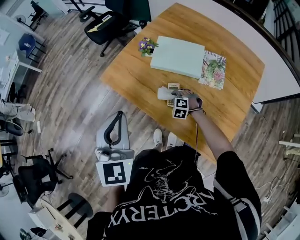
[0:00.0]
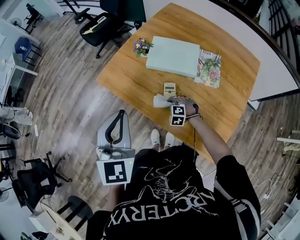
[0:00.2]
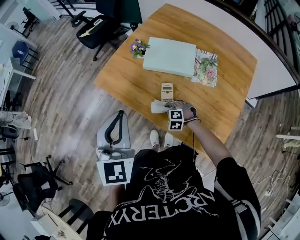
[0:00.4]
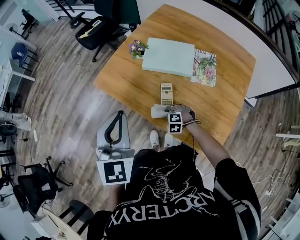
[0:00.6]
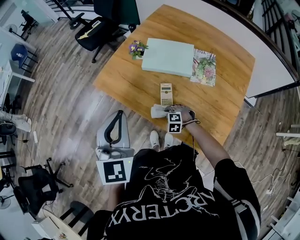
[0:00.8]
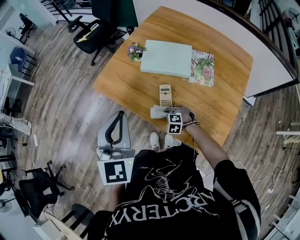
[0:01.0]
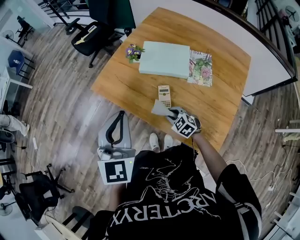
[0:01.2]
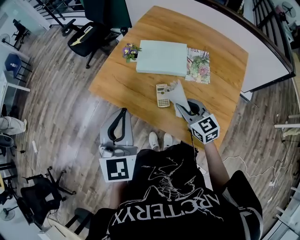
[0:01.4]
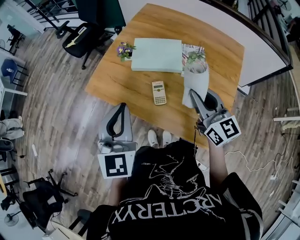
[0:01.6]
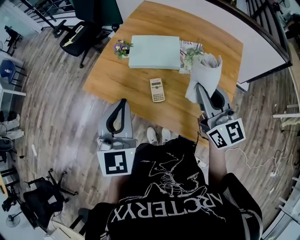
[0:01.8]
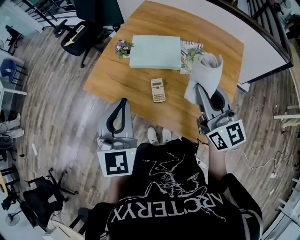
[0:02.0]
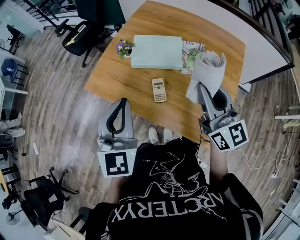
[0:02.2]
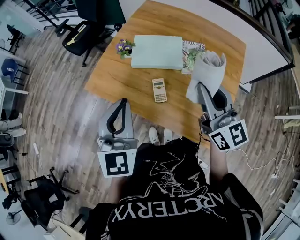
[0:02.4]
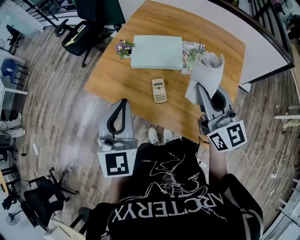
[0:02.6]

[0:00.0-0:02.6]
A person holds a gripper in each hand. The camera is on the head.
0:00.0 to 0:01.2: The right gripper is displaced backward and upward by roughly 10 cm, and rotates about 40 degrees.
0:01.2 to 0:02.6: The right gripper shifts roughly 35 cm upward, and tilts its fingers about 50 degrees upward.

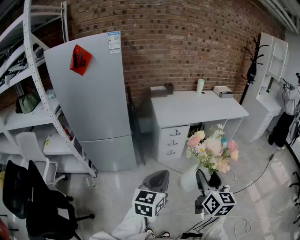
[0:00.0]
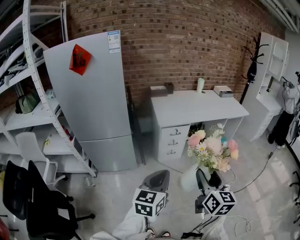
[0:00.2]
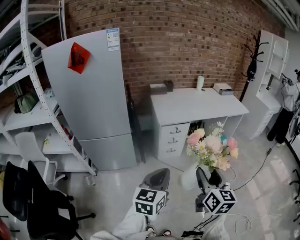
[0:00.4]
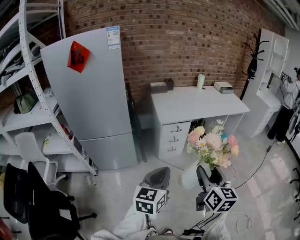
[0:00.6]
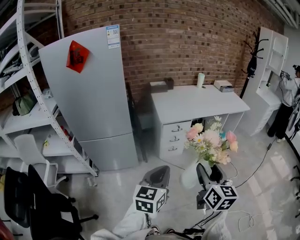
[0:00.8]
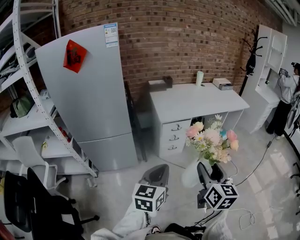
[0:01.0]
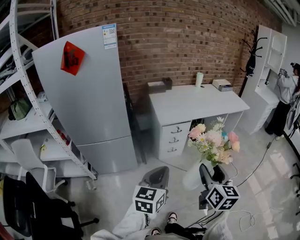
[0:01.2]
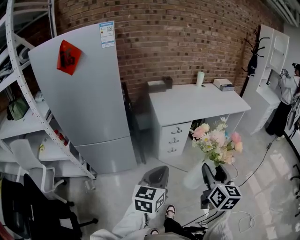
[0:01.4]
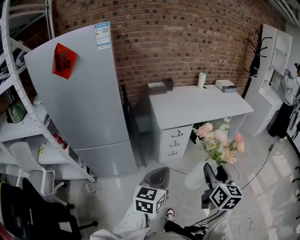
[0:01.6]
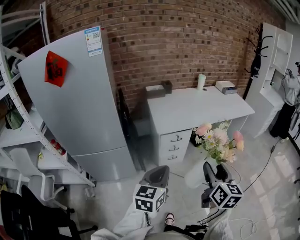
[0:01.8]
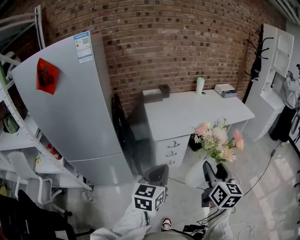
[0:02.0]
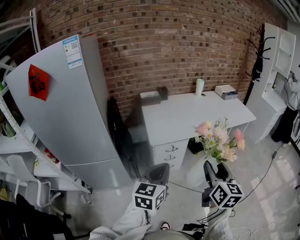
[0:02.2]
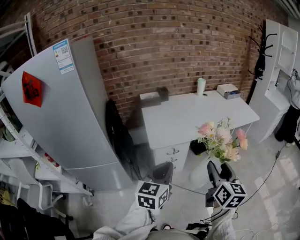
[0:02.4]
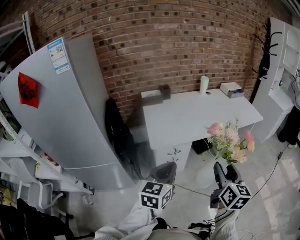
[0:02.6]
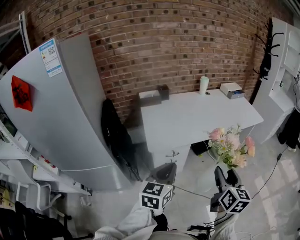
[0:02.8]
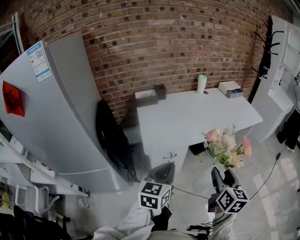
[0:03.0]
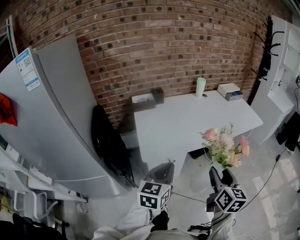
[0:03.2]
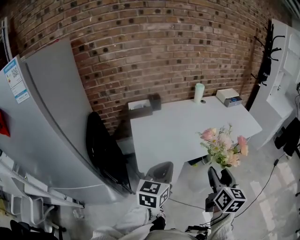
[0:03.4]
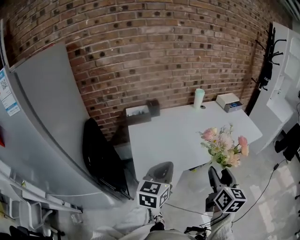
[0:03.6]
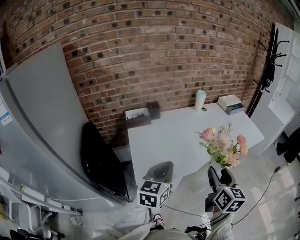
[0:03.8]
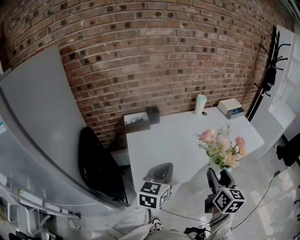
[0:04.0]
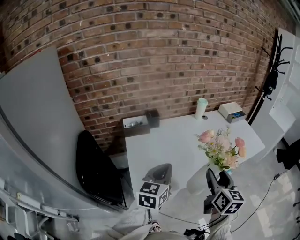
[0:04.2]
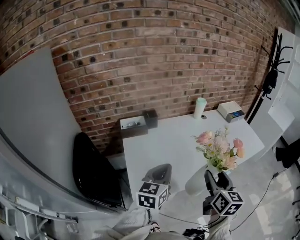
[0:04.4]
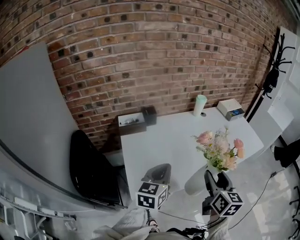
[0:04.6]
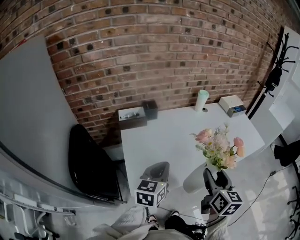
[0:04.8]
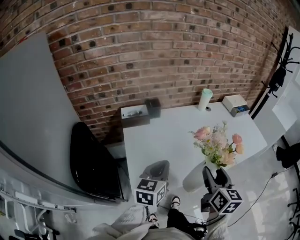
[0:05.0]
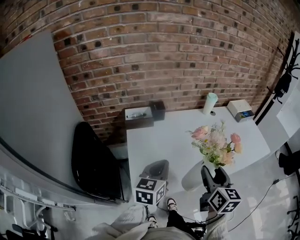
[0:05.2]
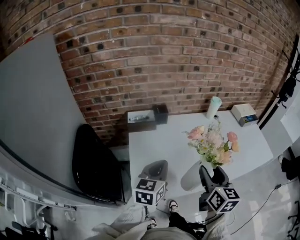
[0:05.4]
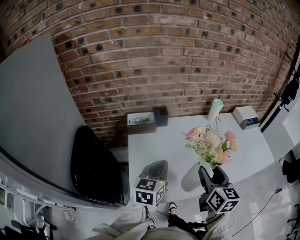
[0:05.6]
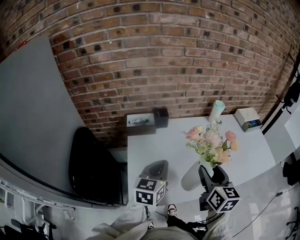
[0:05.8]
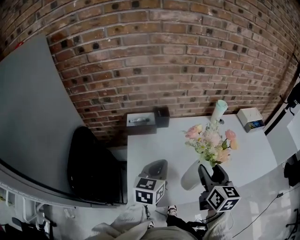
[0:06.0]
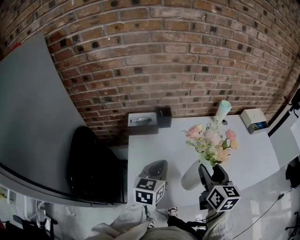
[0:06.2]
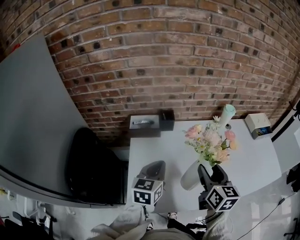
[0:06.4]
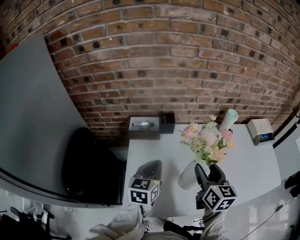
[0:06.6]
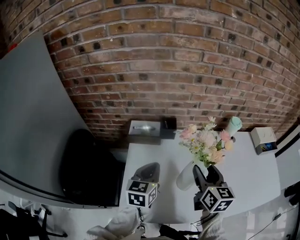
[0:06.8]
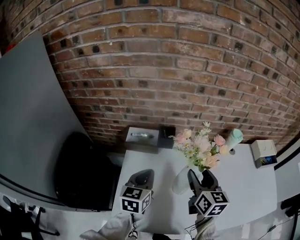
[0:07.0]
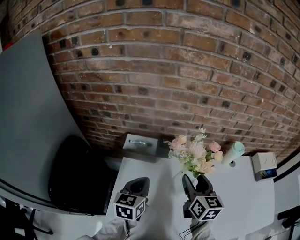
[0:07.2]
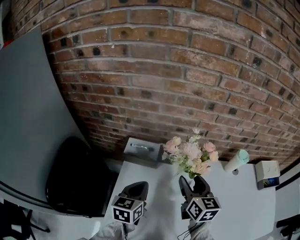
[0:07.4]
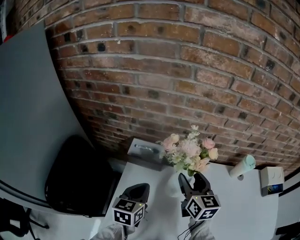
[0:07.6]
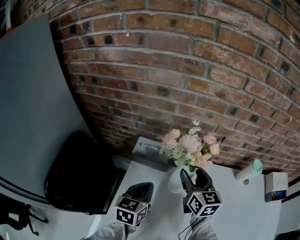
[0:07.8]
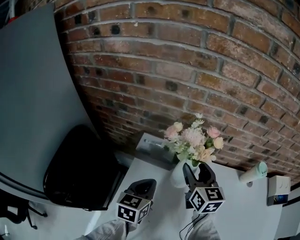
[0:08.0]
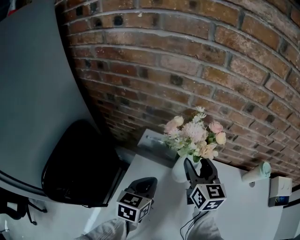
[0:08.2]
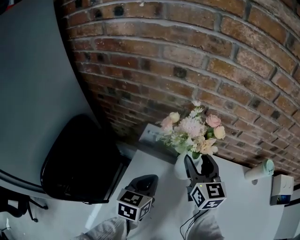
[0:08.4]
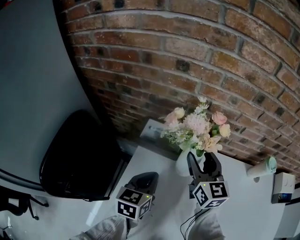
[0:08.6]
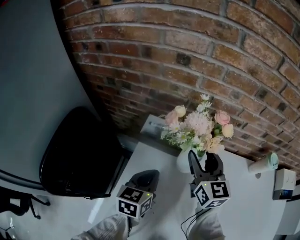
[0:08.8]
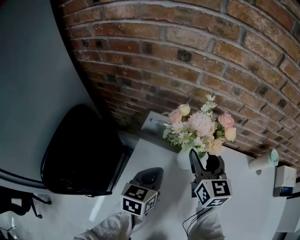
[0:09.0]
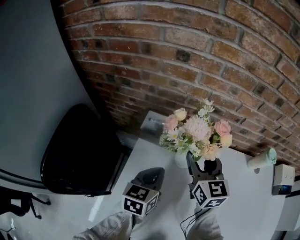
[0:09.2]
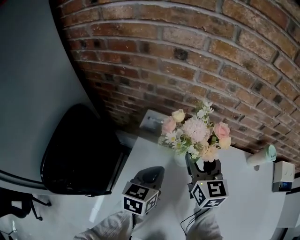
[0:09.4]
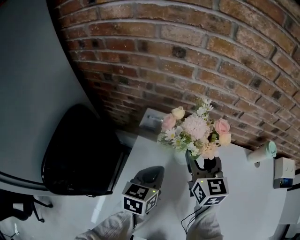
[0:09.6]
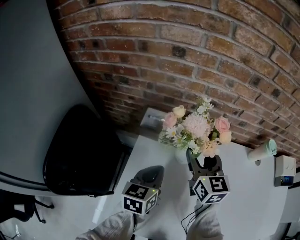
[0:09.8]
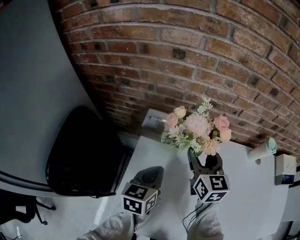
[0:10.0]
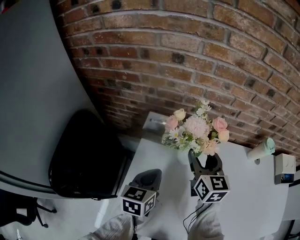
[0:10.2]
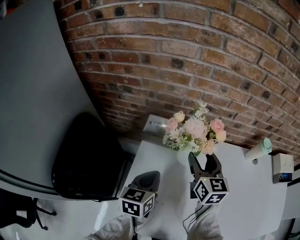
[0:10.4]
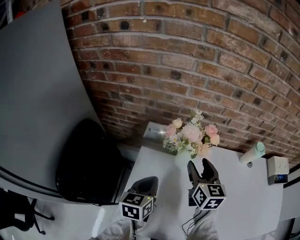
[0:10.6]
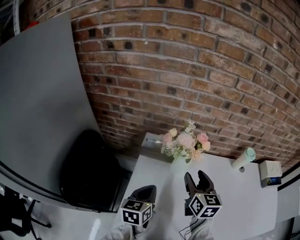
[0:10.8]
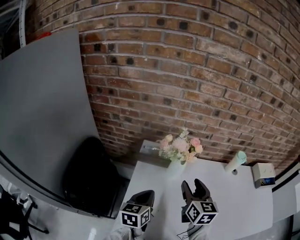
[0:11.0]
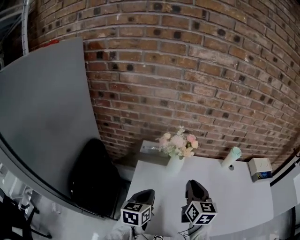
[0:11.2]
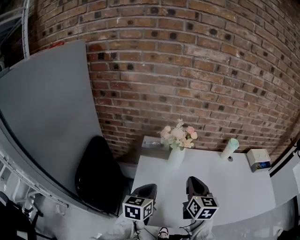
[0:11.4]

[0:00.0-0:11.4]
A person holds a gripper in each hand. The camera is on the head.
0:00.0 to 0:01.4: Both grippers travel together forward, roughly 5 cm.
0:01.4 to 0:02.8: Both grippers travel together forward, about 30 cm.
0:02.8 to 0:04.2: Both grippers travel together forward, approximately 30 cm.
0:04.2 to 0:05.6: The left gripper shifts about 10 cm forward. Meanwhile the right gripper travels forward and to the left by approximately 15 cm.
0:05.6 to 0:07.2: The right gripper heads forward, covering some 25 cm; the left gripper is displaced forward by roughly 15 cm, and changes its angle by about 20 degrees.
0:07.2 to 0:08.6: The right gripper shifts some 15 cm forward and to the left, and rotates about 20 degrees, while the left gripper goes some 10 cm downward.
0:08.6 to 0:10.0: The grippers stay close to where they were, moving slightly.
0:10.0 to 0:11.4: The two grippers go some 20 cm backward and upward. The right gripper closes up.

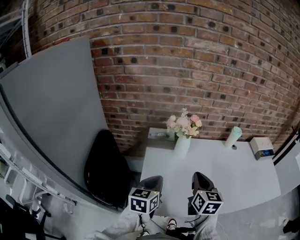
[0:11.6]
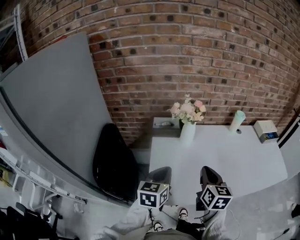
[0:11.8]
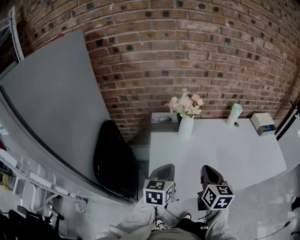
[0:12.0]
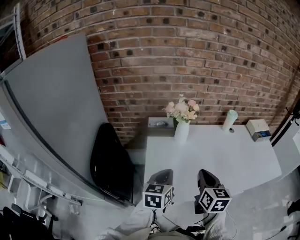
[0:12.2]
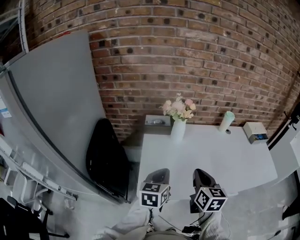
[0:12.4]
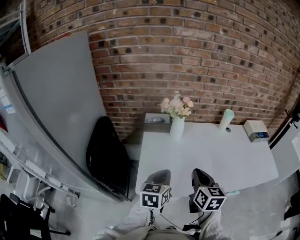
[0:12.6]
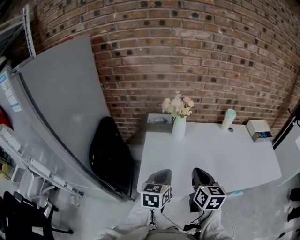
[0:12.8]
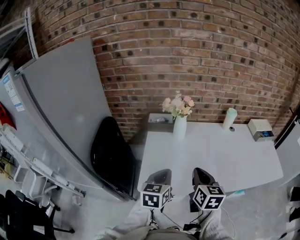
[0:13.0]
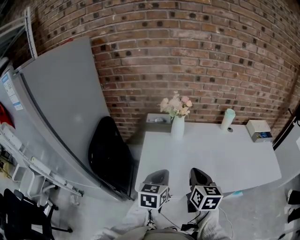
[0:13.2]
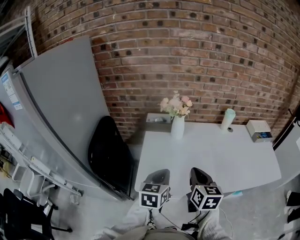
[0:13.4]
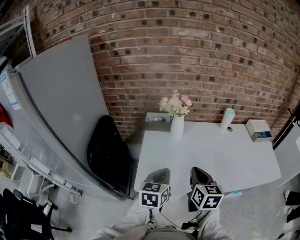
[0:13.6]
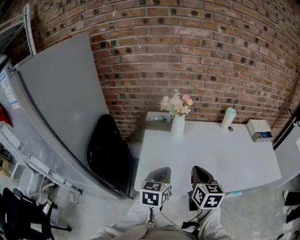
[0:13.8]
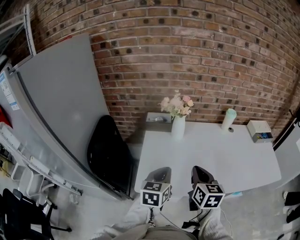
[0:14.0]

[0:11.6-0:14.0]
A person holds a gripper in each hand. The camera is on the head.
0:11.6 to 0:12.8: The right gripper moves backward, approximately 10 cm; the left gripper goes about 10 cm backward and to the right.
0:12.8 to 0:14.0: Both grippers stay put.

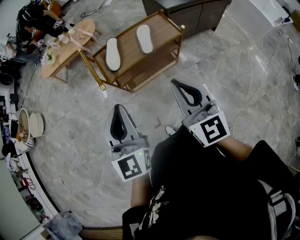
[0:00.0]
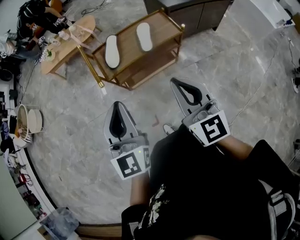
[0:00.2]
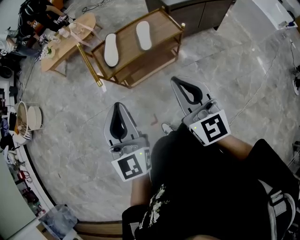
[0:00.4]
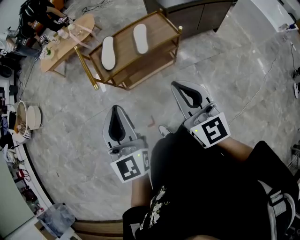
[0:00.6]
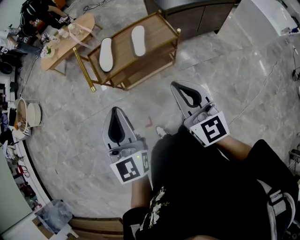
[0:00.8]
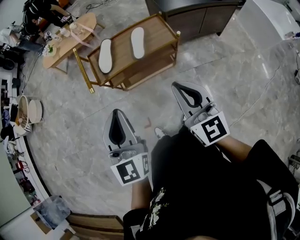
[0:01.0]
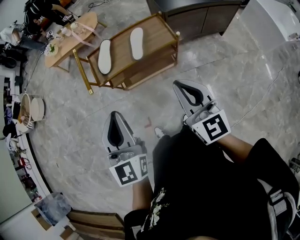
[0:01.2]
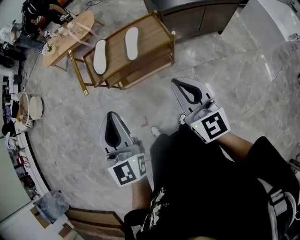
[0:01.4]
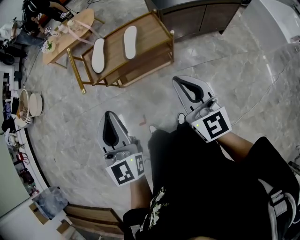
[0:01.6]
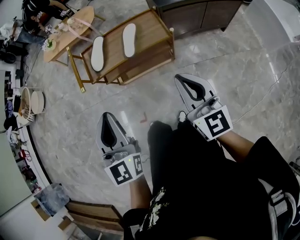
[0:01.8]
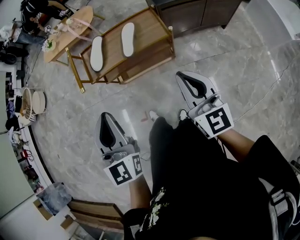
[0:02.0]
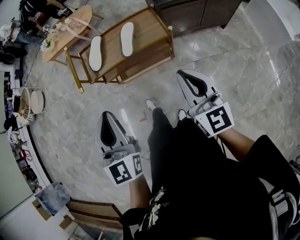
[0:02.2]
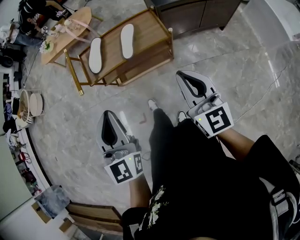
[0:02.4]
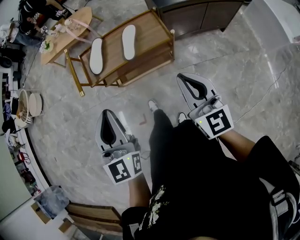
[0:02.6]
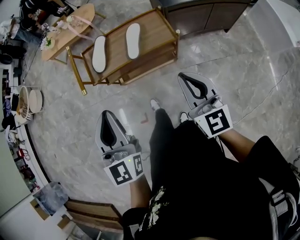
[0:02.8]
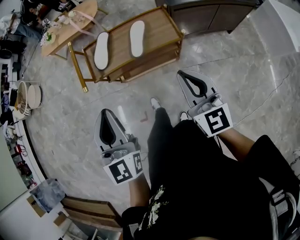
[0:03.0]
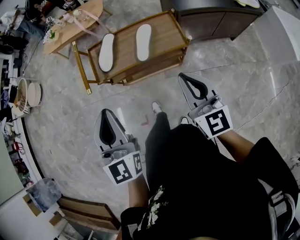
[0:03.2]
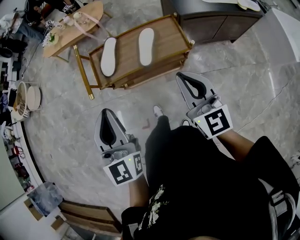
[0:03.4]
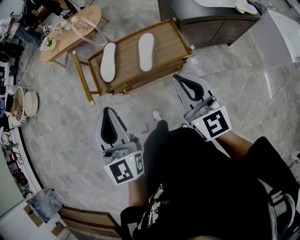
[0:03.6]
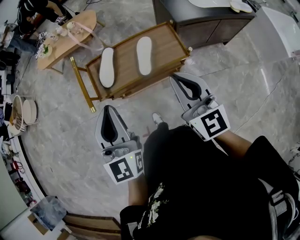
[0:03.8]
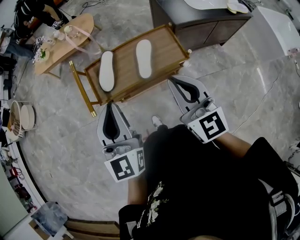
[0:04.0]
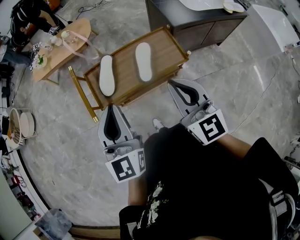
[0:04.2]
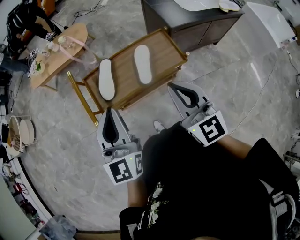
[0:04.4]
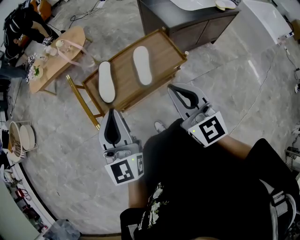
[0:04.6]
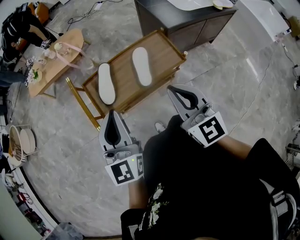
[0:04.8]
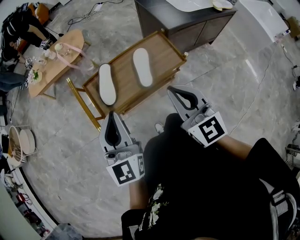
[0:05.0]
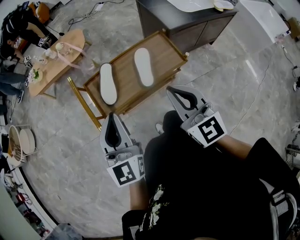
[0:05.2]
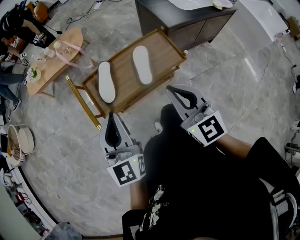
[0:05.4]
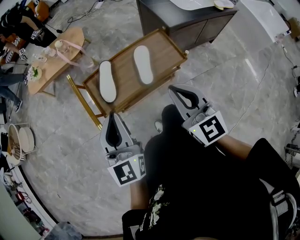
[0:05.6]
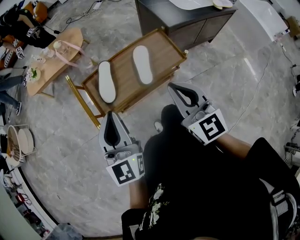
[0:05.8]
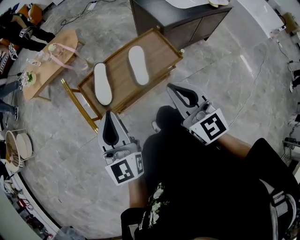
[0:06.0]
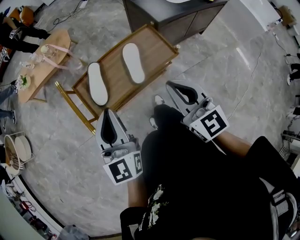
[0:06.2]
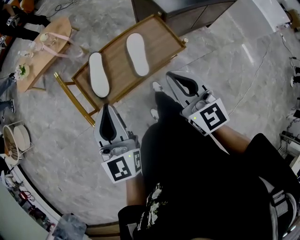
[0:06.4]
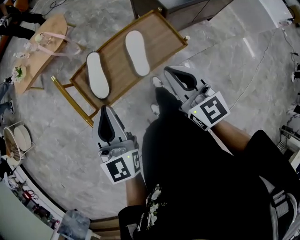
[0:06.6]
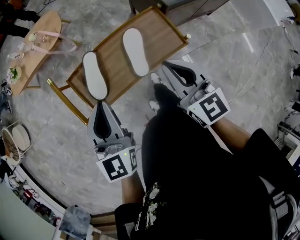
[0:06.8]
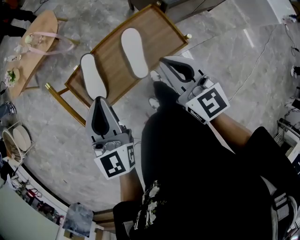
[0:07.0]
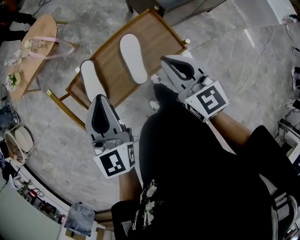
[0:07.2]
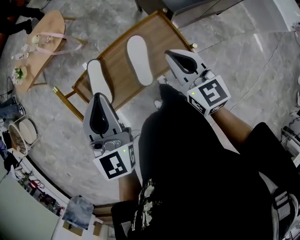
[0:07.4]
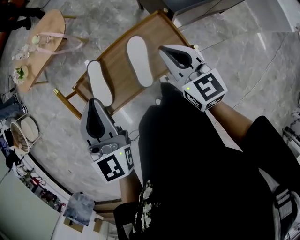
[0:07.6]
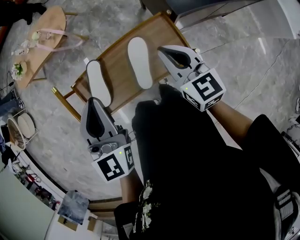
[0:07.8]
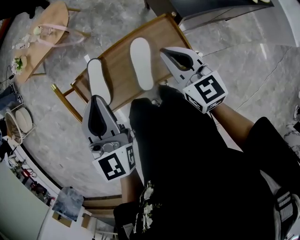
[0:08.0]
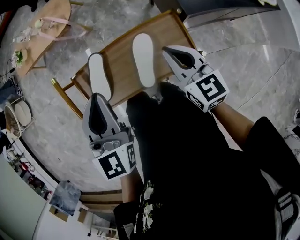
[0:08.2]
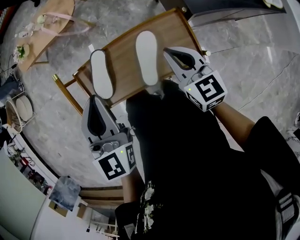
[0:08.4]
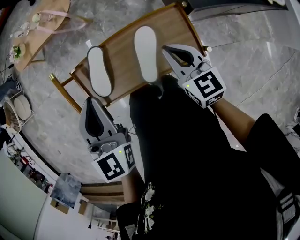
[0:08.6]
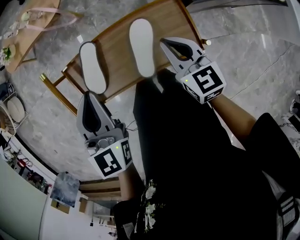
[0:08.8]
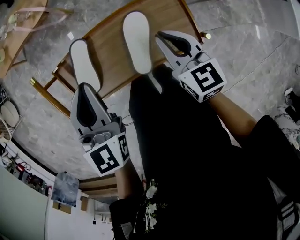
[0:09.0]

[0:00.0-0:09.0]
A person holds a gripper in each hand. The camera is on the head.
0:00.0 to 0:01.6: The two grippers go some 20 cm to the right.
0:01.6 to 0:03.0: Both grippers move forward, about 5 cm.
0:03.0 to 0:04.4: The right gripper heads forward and to the left, covering some 15 cm. Meanwhile the left gripper travels forward by approximately 15 cm.
0:04.4 to 0:06.0: There are only small adjustments of the grippers.
0:06.0 to 0:07.6: Both grippers travel together forward, approximately 20 cm.
0:07.6 to 0:09.0: The two grippers go approximately 10 cm downward.
